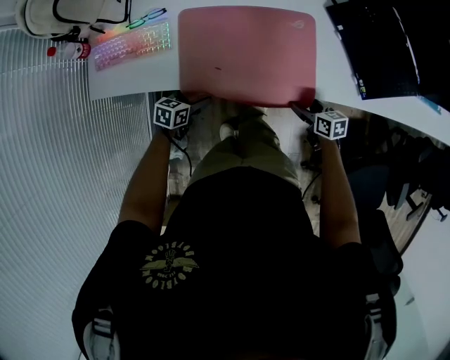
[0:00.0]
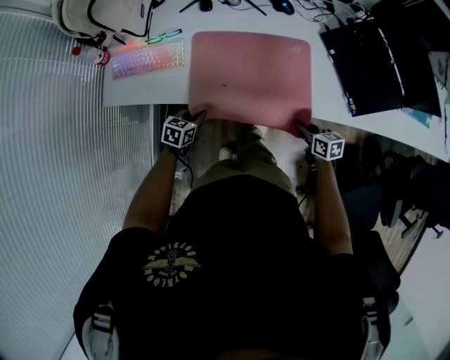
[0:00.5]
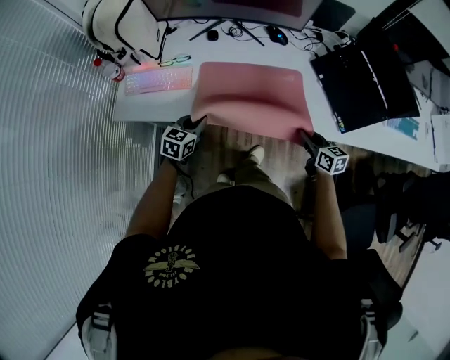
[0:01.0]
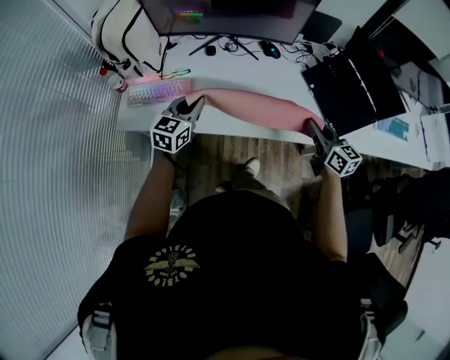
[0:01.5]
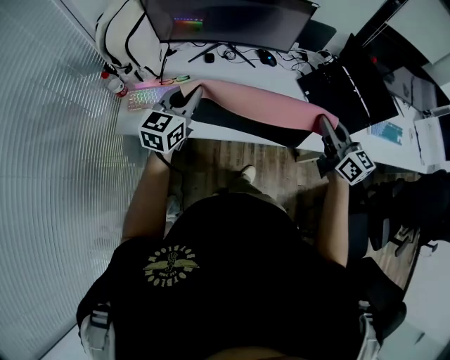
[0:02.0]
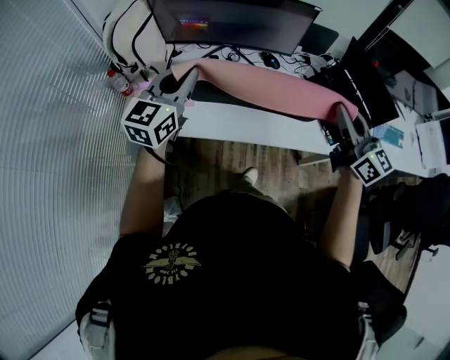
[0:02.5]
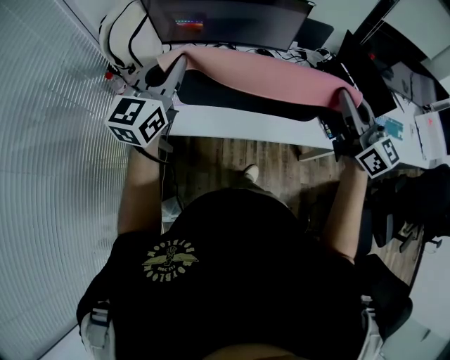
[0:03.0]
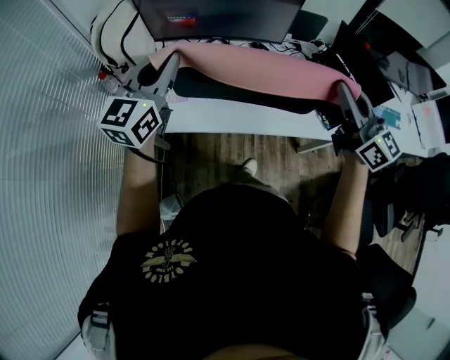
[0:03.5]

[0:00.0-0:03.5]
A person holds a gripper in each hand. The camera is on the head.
0:00.0 to 0:02.0: The grippers both shift upward by about 40 cm. The right gripper angles its fingers upward, by approximately 40 degrees, and closes its fingers, while the left gripper points its fingers approximately 30 degrees further upward, and closes.
0:02.0 to 0:03.5: Both grippers travel together upward, about 15 cm.

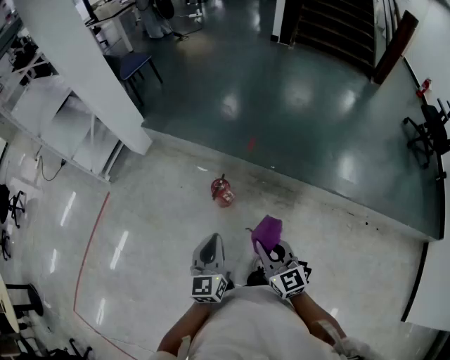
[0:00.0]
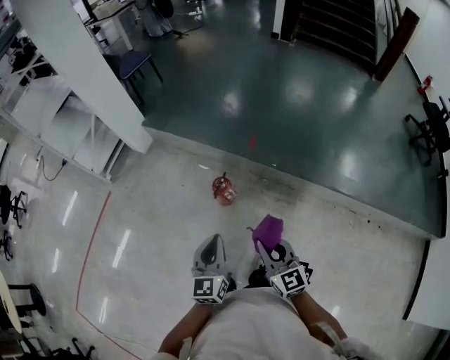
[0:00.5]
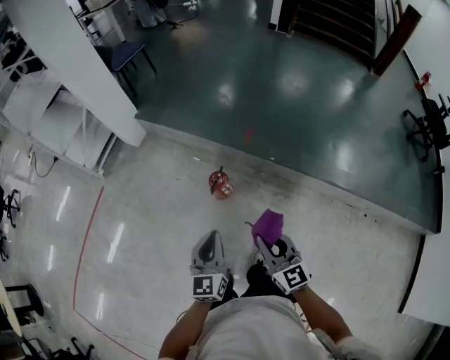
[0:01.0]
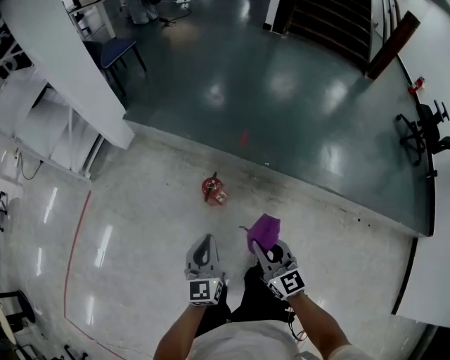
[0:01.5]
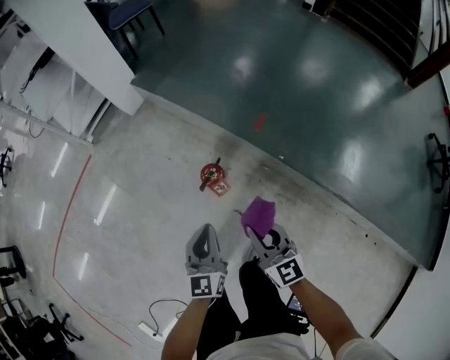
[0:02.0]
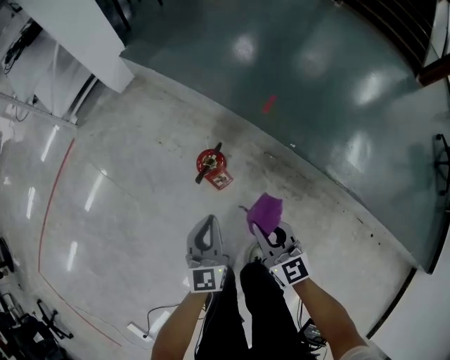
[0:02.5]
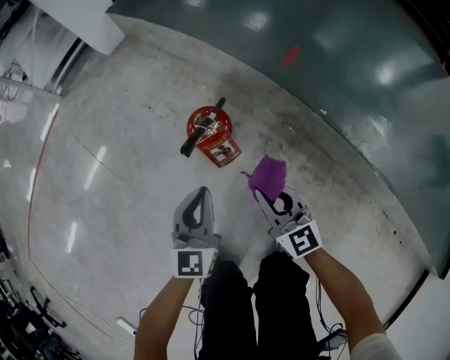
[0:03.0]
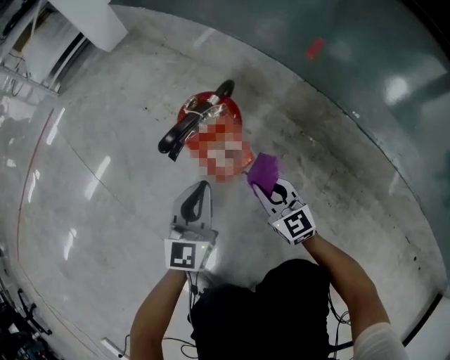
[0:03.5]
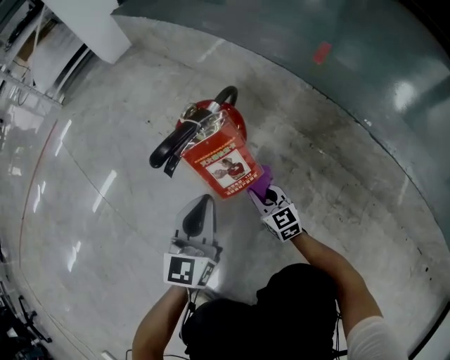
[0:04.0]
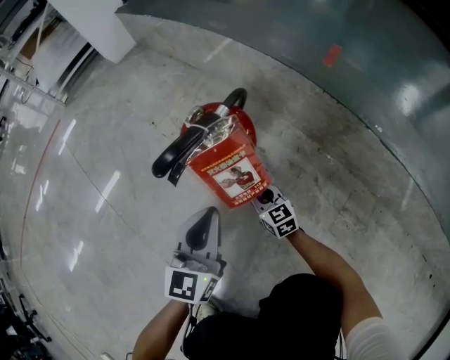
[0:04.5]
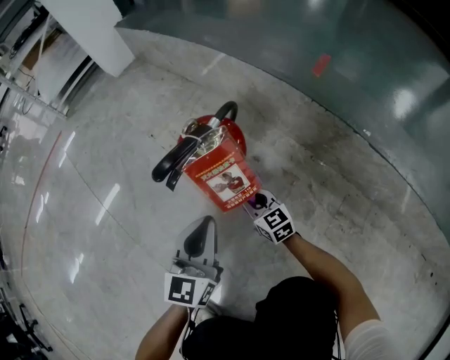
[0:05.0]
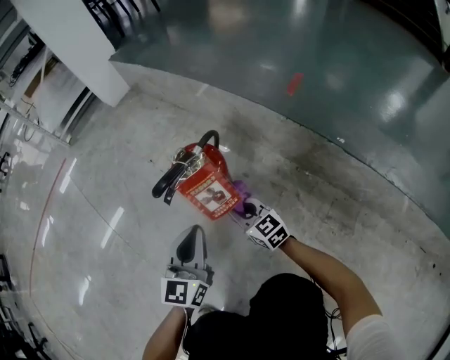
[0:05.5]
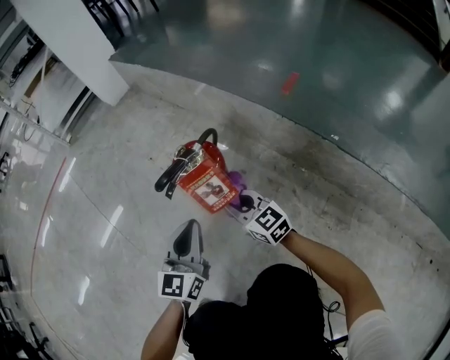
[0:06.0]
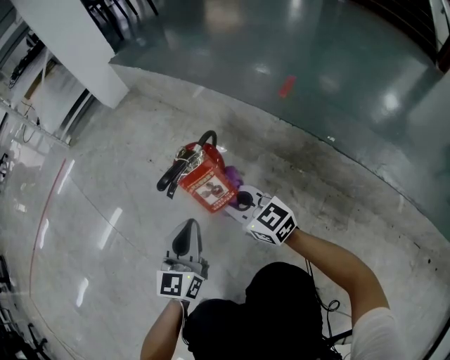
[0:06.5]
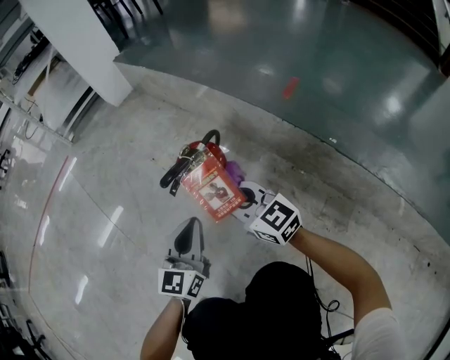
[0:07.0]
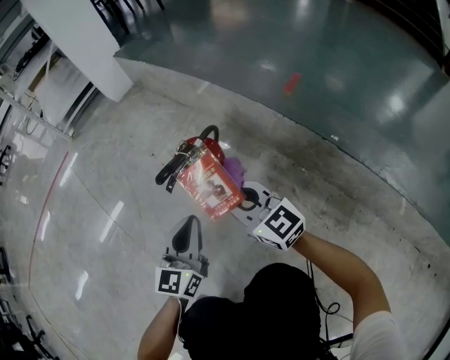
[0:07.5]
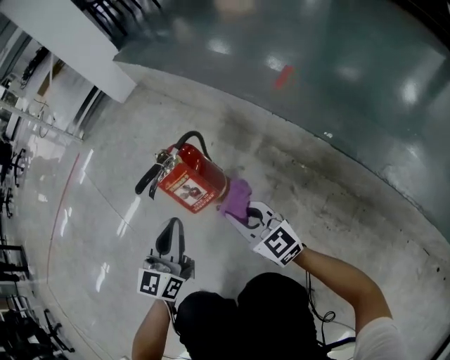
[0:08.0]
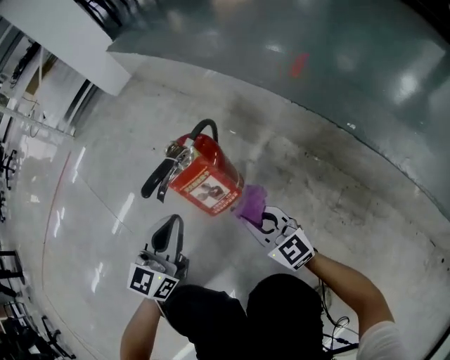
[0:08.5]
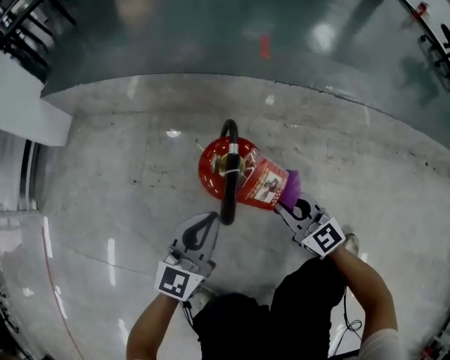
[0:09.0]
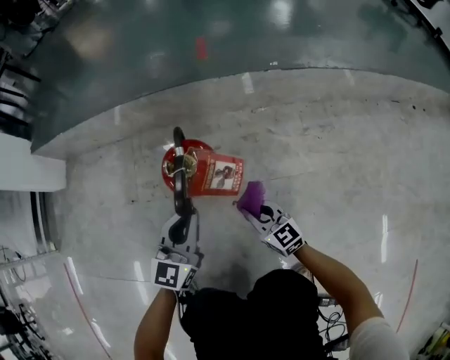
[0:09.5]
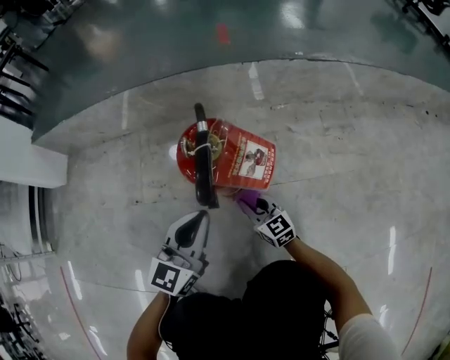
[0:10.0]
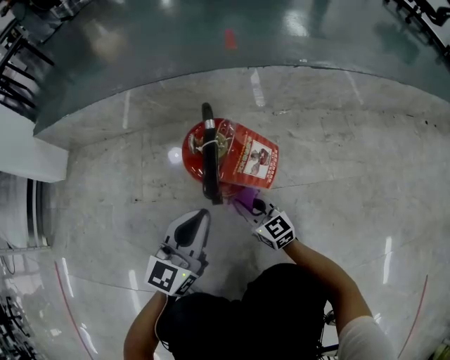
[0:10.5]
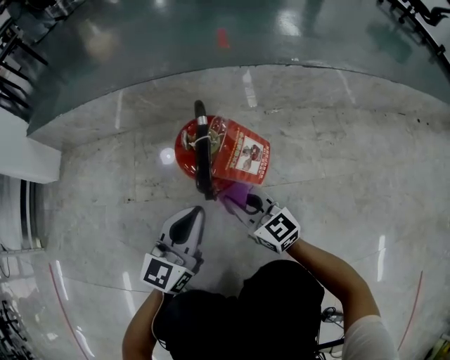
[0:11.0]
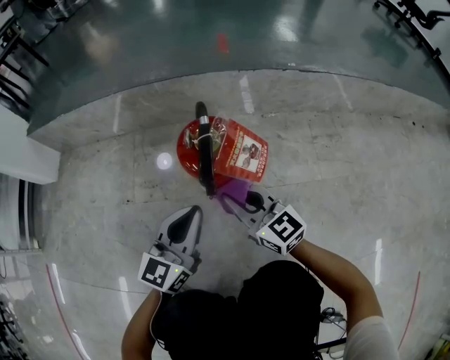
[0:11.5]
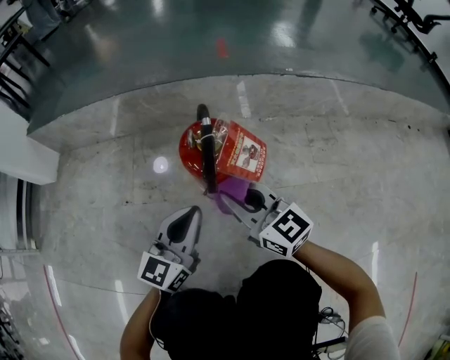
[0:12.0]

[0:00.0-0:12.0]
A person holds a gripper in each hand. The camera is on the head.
0:00.0 to 0:02.0: The right gripper heads forward and downward, covering approximately 20 cm. Meanwhile the left gripper heads downward and forward, covering about 20 cm.
0:02.0 to 0:04.0: The two grippers go some 70 cm downward.
0:04.0 to 0:06.0: The left gripper goes about 5 cm upward; the right gripper moves upward, approximately 15 cm.
0:06.0 to 0:08.0: The right gripper is displaced upward and backward by about 10 cm.
0:08.0 to 0:10.0: The left gripper shifts by roughly 15 cm, and changes its angle by roughly 60 degrees. The right gripper shifts approximately 25 cm downward, and rotates roughly 50 degrees.
0:10.0 to 0:12.0: The right gripper travels upward by approximately 25 cm.

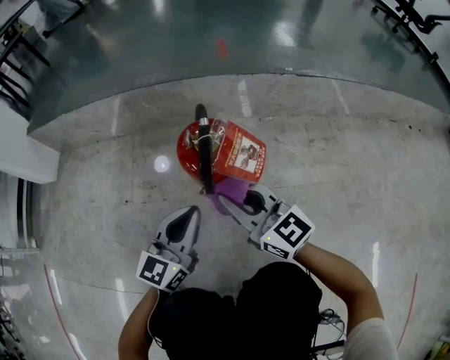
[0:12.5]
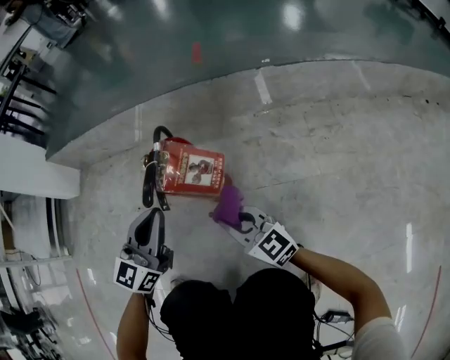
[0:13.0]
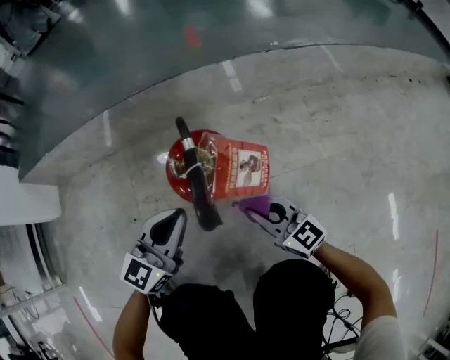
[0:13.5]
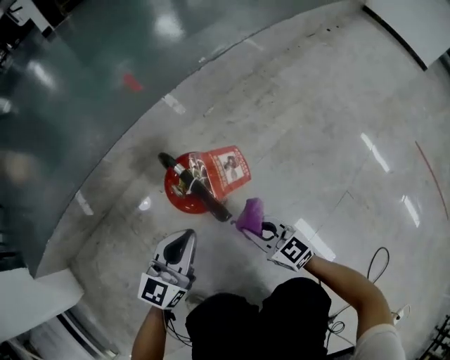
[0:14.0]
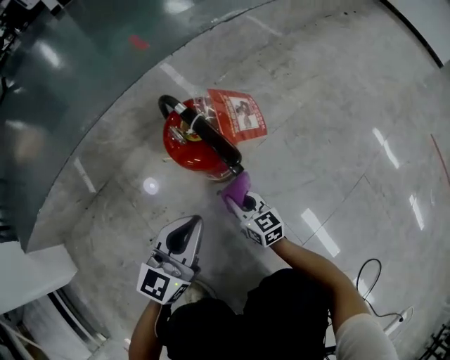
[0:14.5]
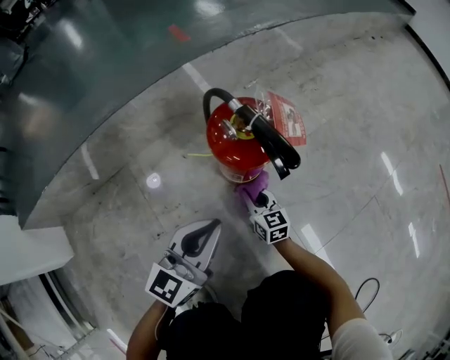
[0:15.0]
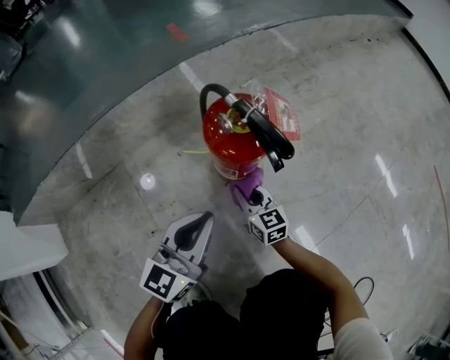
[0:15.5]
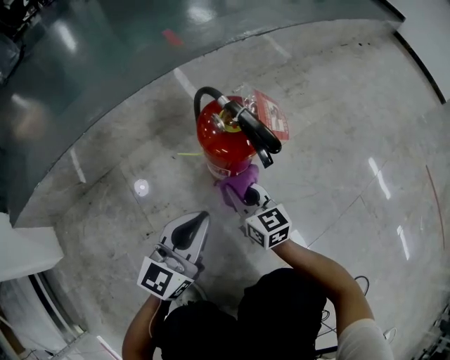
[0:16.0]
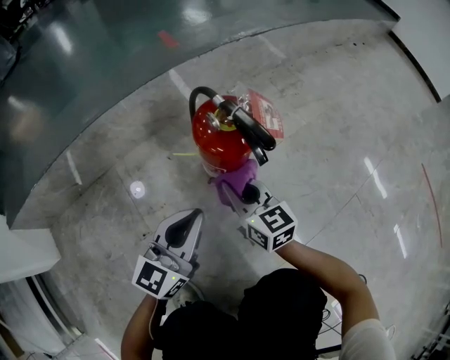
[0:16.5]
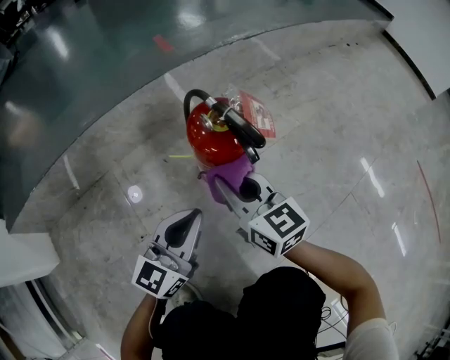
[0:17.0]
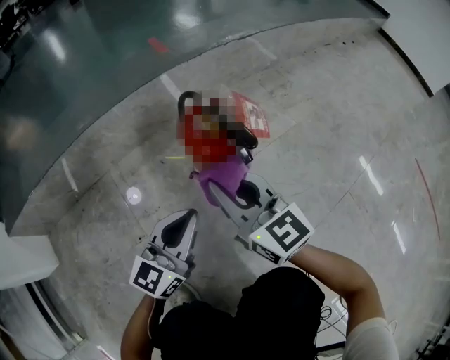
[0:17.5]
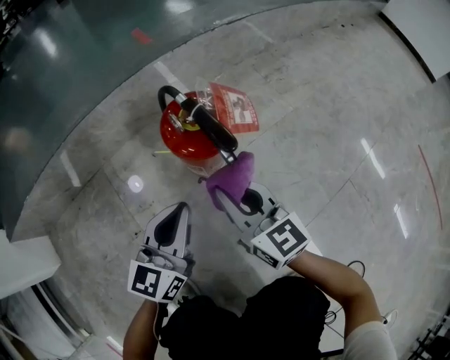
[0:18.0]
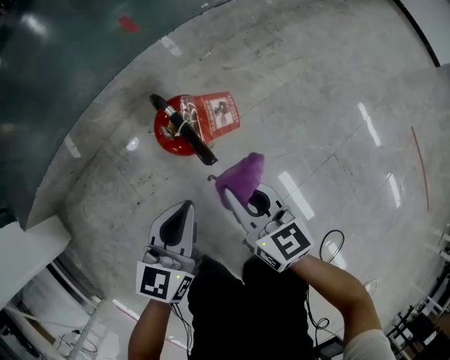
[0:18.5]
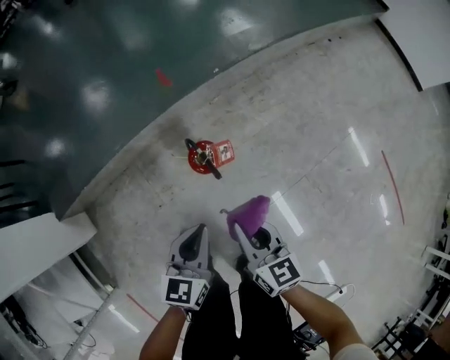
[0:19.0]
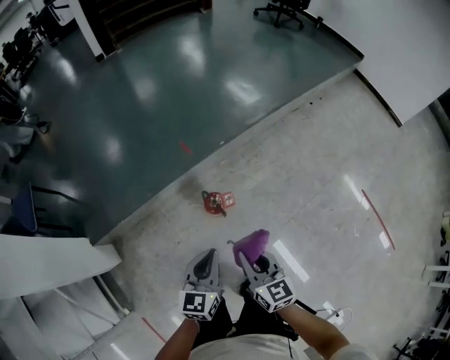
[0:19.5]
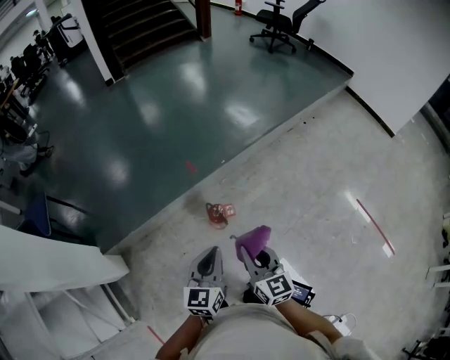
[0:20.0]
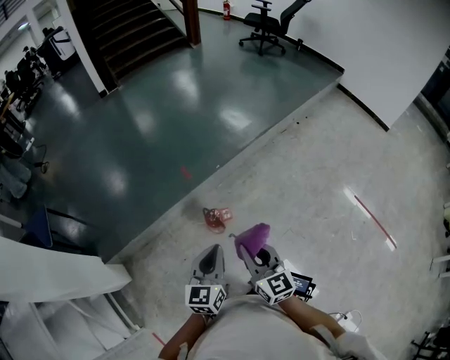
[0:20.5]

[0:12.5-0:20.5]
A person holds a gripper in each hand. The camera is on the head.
0:12.5 to 0:14.5: The right gripper heads downward, covering about 25 cm, and turns by about 50 degrees. Meanwhile the left gripper goes upward and returns, about 5 cm each way, and rotates roughly 40 degrees.
0:14.5 to 0:16.5: The right gripper goes some 15 cm upward.
0:16.5 to 0:18.5: The right gripper goes up and down, roughly 15 cm each way, reversing 2 times; the left gripper goes roughly 10 cm upward and to the right, and changes its angle by approximately 20 degrees.
0:18.5 to 0:20.5: The two grippers go about 60 cm upward. The right gripper turns by roughly 20 degrees.

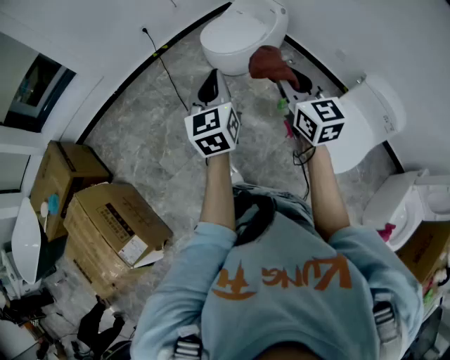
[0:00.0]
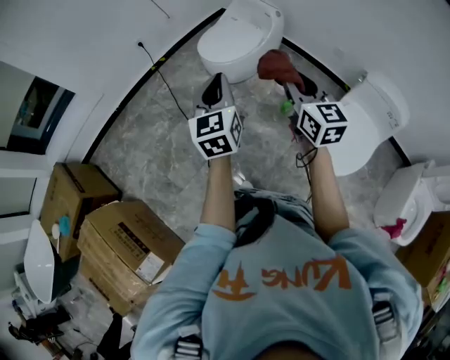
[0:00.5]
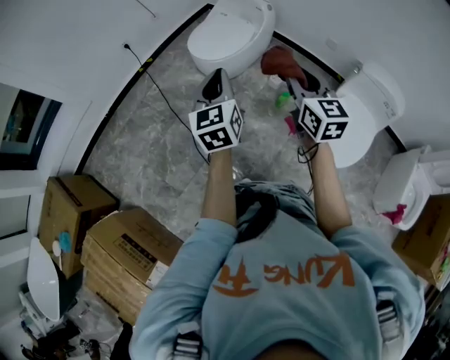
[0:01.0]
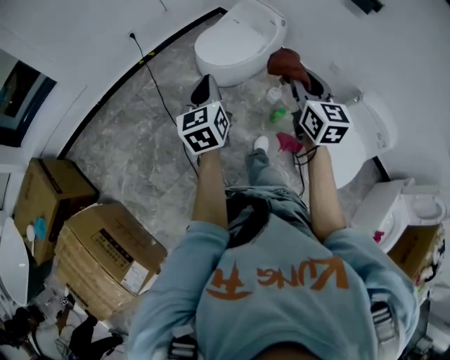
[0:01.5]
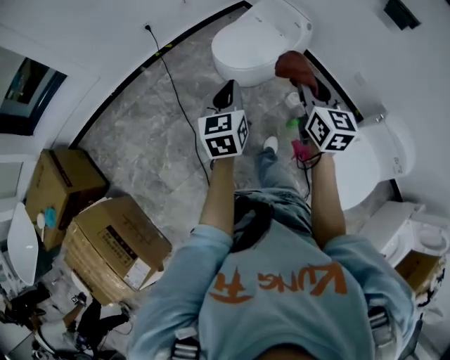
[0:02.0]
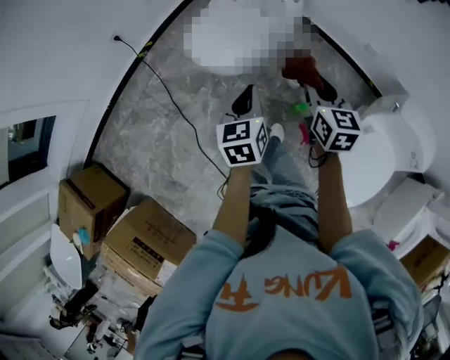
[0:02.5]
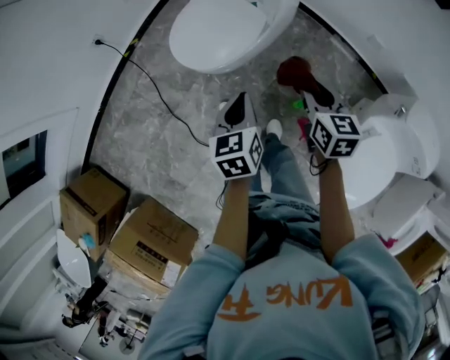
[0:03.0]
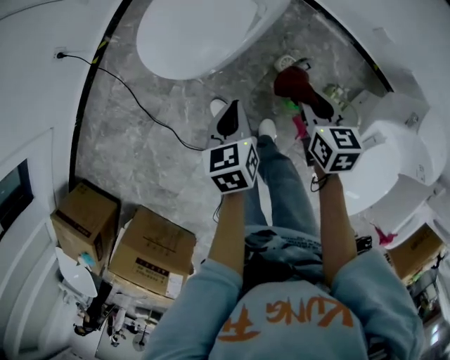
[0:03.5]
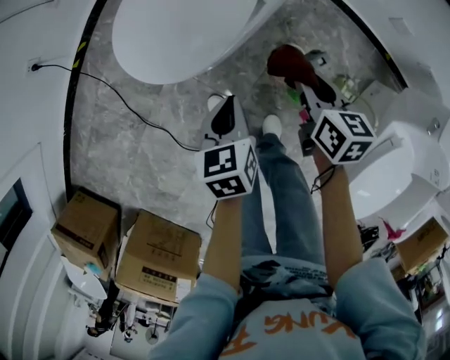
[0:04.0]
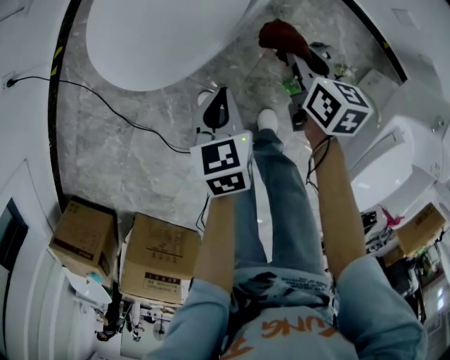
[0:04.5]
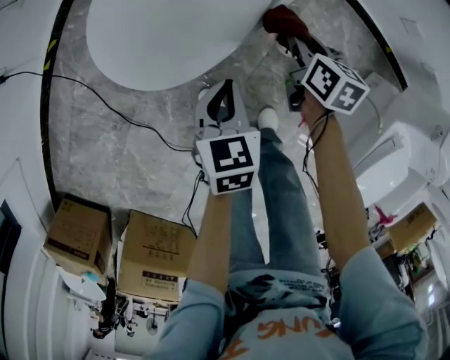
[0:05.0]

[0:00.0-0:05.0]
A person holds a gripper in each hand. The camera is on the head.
0:00.0 to 0:02.5: Both grippers move forward, downward and to the right, roughly 50 cm. The right gripper swivels roughly 30 degrees. The left gripper swivels about 30 degrees.
0:02.5 to 0:05.0: Both grippers travel together downward and forward, approximately 50 cm. The right gripper turns by approximately 30 degrees, while the left gripper rotates roughly 20 degrees.
